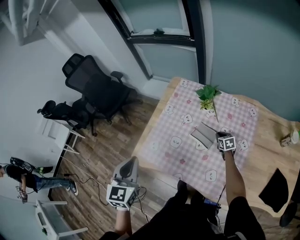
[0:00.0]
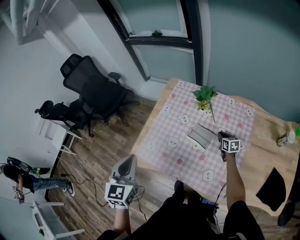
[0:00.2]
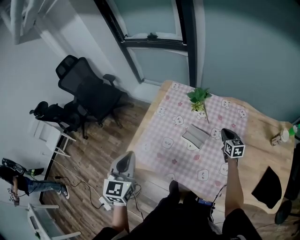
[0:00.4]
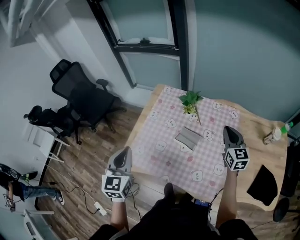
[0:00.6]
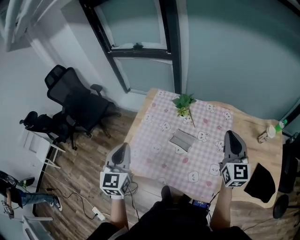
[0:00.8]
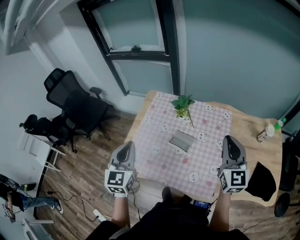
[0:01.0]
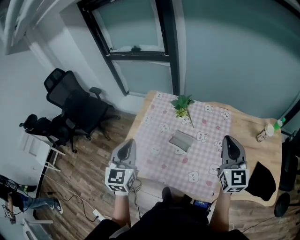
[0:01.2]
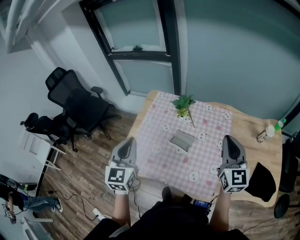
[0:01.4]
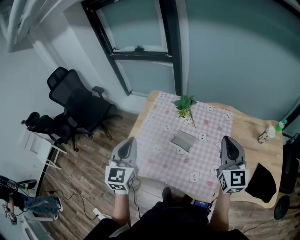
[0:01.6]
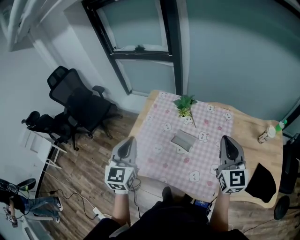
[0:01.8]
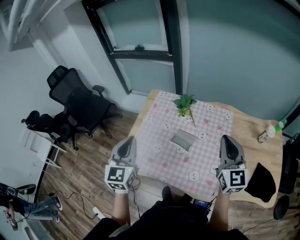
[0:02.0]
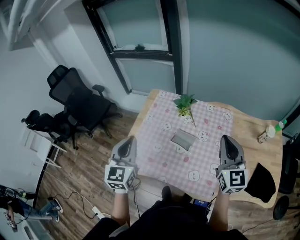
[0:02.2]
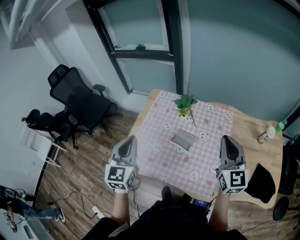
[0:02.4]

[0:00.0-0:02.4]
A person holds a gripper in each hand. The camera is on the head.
0:00.0 to 0:01.2: The left gripper travels forward, to the right and upward by approximately 10 cm, while the right gripper goes about 50 cm upward and backward, and points its fingers some 40 degrees further upward.
0:01.2 to 0:02.4: The grippers move only a little.

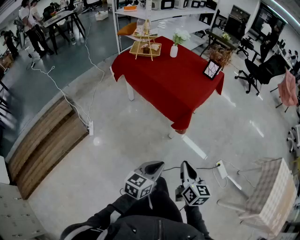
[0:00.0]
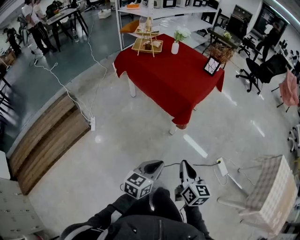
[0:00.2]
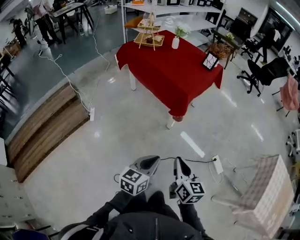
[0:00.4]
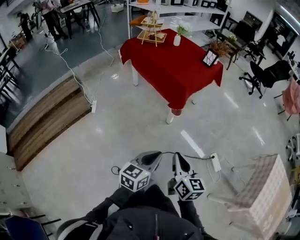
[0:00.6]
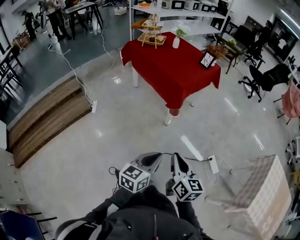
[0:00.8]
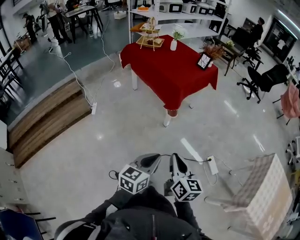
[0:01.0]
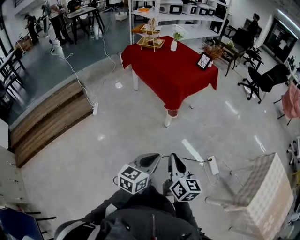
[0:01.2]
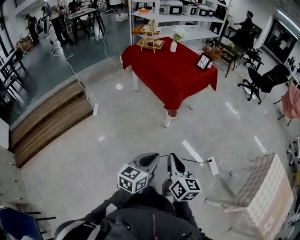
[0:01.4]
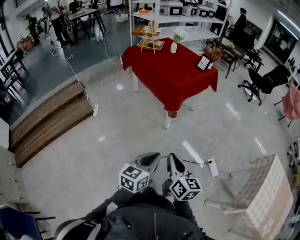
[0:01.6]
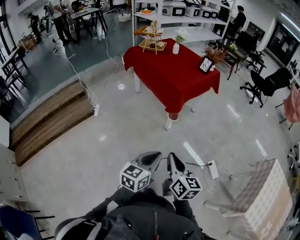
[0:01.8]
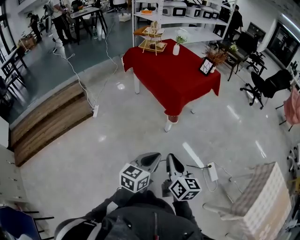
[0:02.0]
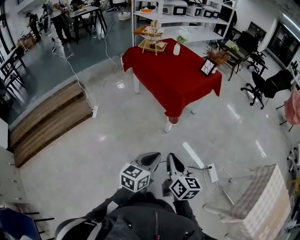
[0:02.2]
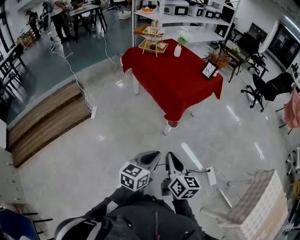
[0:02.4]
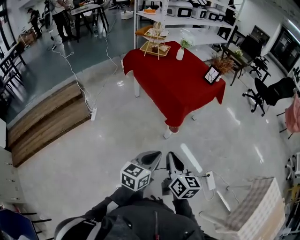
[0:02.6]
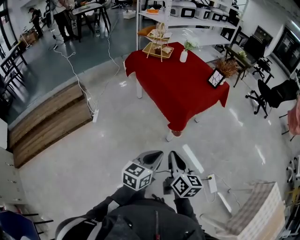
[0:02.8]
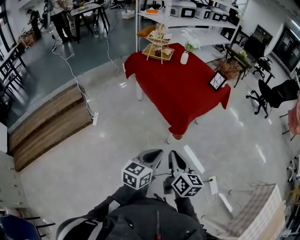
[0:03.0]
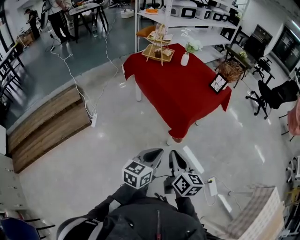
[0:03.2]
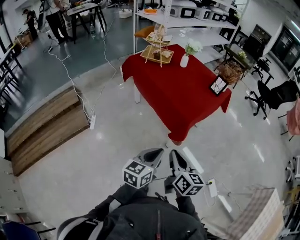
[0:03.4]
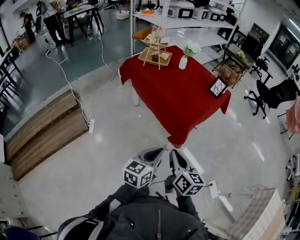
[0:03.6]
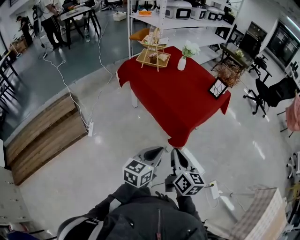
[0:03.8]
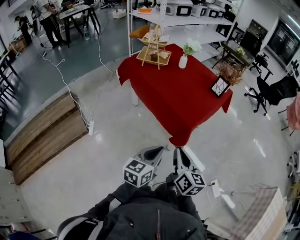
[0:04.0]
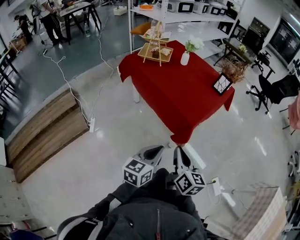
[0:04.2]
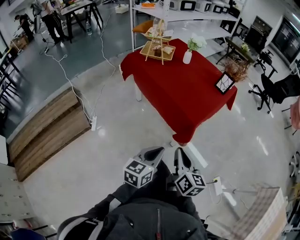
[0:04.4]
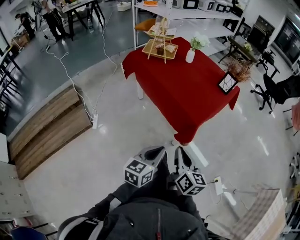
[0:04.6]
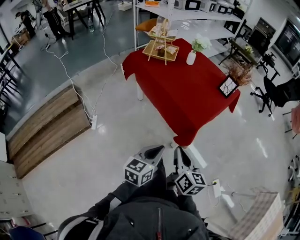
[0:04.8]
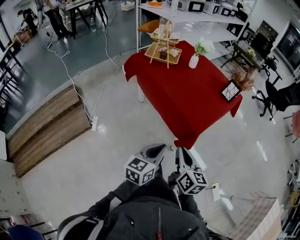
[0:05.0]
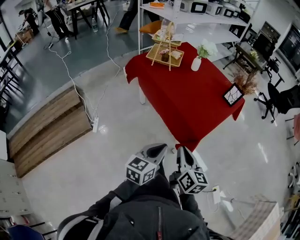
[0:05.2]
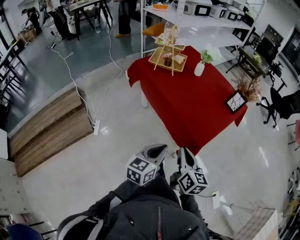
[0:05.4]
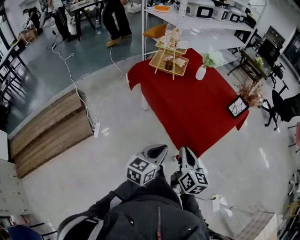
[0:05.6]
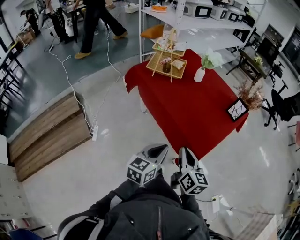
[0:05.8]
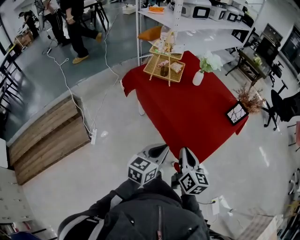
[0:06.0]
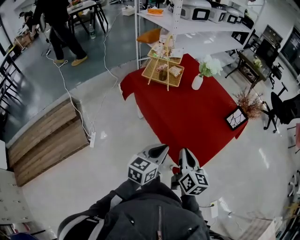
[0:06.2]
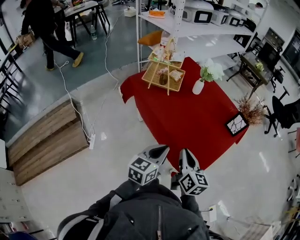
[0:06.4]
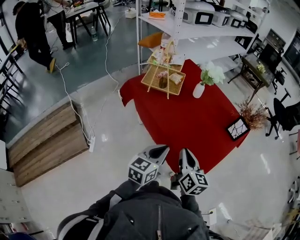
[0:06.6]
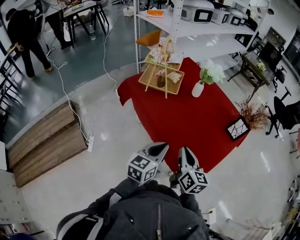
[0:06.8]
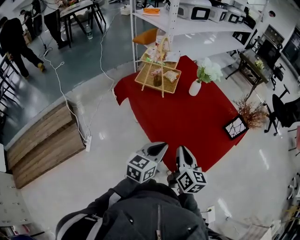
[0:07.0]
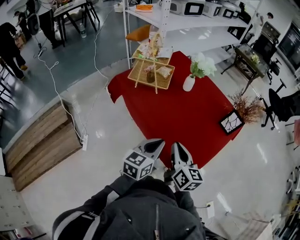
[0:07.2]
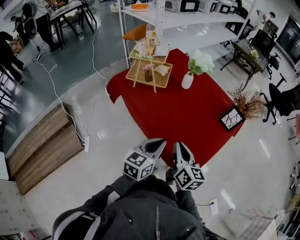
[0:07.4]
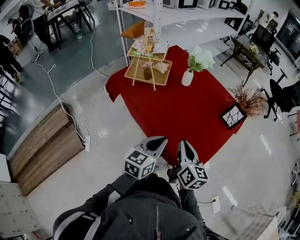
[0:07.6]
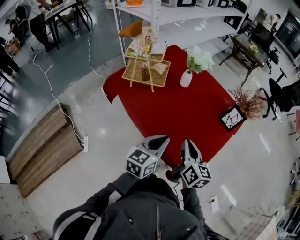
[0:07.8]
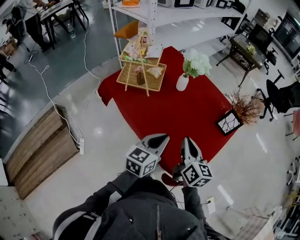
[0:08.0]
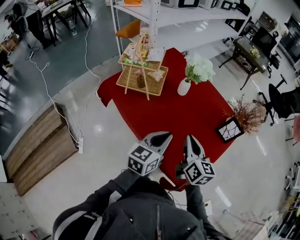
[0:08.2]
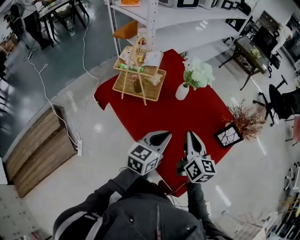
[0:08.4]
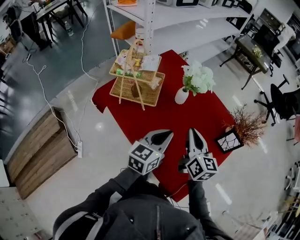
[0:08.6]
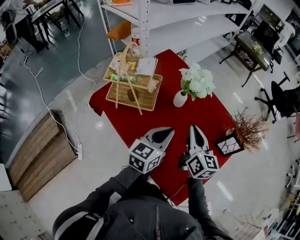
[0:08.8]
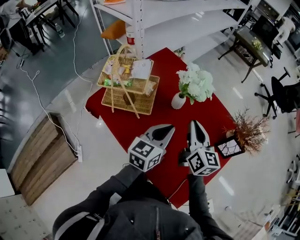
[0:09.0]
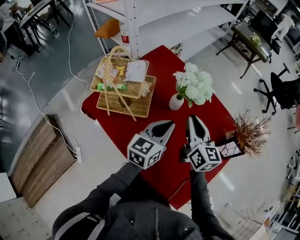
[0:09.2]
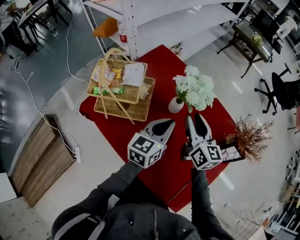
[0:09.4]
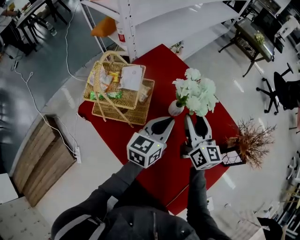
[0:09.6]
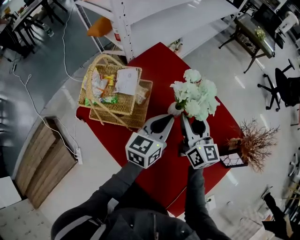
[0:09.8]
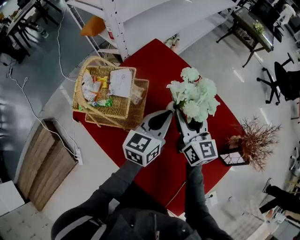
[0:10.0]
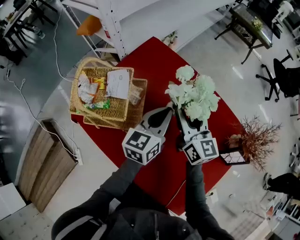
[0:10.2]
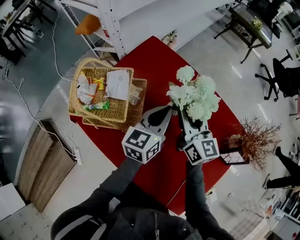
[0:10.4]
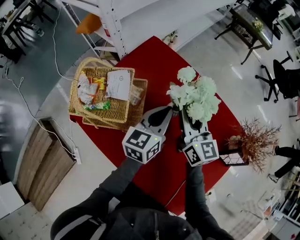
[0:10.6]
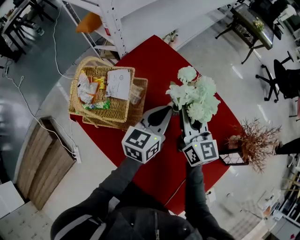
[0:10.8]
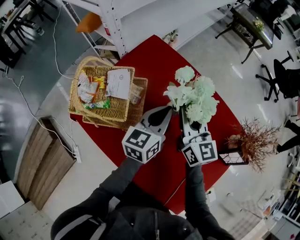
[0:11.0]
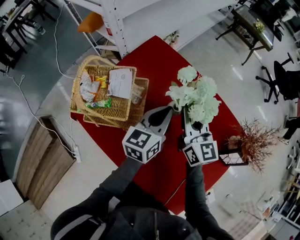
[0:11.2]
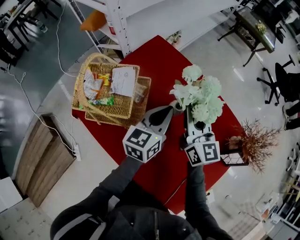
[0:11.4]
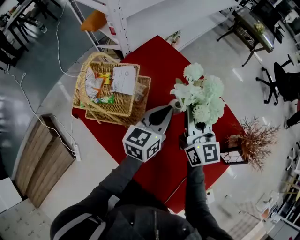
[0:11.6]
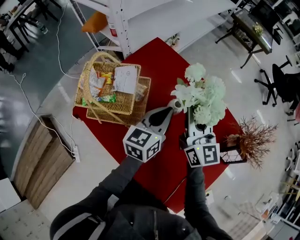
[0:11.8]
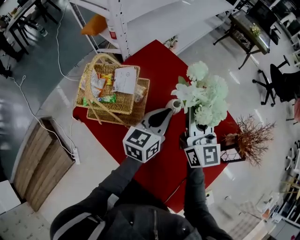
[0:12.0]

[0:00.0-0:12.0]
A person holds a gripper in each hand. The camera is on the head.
0:00.0 to 0:01.6: The two grippers go some 25 cm backward and to the right.
0:01.6 to 0:03.0: The grippers both shift forward by roughly 25 cm.
0:03.0 to 0:04.4: The left gripper shifts roughly 15 cm forward and to the left. Meanwhile the right gripper shifts roughly 10 cm forward.
0:04.4 to 0:06.0: Both grippers travel together forward, approximately 25 cm.
0:06.0 to 0:07.6: The grippers both shift forward by roughly 15 cm.
0:07.6 to 0:09.0: The two grippers go about 30 cm forward.
0:09.0 to 0:10.4: The grippers both shift forward by approximately 15 cm. The right gripper opens its fingers.
0:10.4 to 0:12.0: The right gripper travels upward by roughly 10 cm, and closes its fingers.

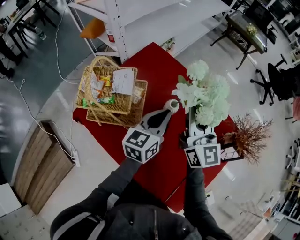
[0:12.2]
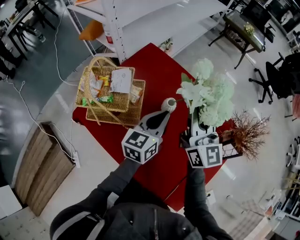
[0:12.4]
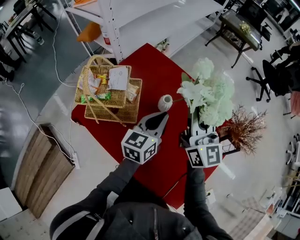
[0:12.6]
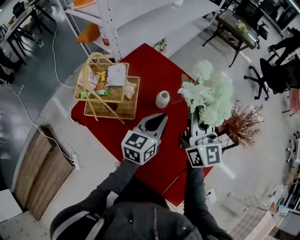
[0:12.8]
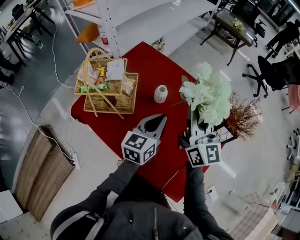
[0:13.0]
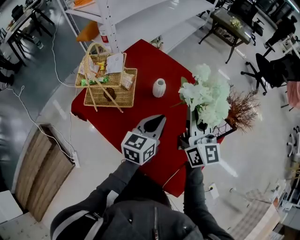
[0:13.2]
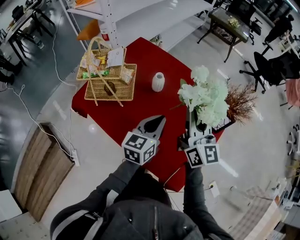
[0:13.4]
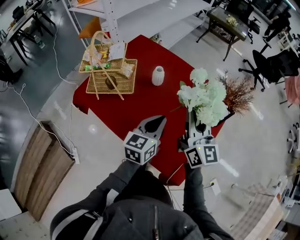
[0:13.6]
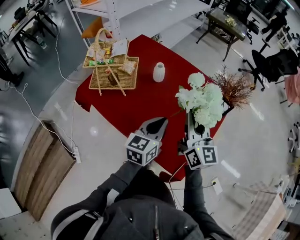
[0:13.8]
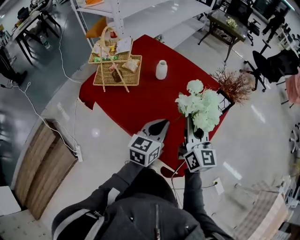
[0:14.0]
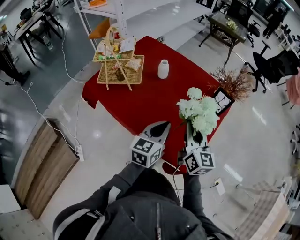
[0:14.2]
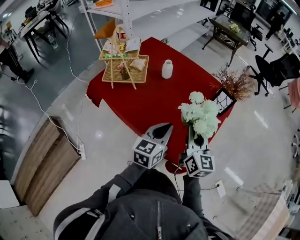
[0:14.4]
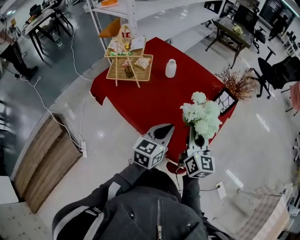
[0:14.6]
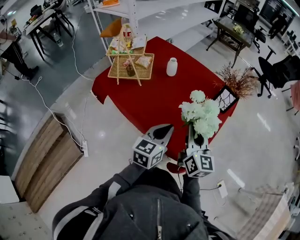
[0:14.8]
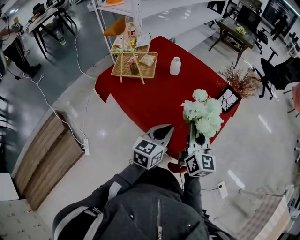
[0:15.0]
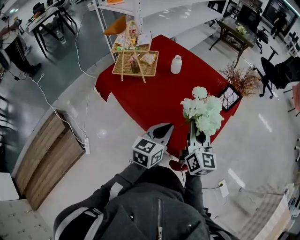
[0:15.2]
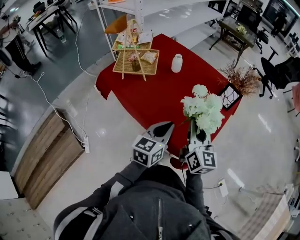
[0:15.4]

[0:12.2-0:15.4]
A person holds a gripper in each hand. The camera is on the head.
0:12.2 to 0:13.8: The grippers both shift backward and to the right by about 25 cm.
0:13.8 to 0:15.4: Both grippers move backward, roughly 15 cm.

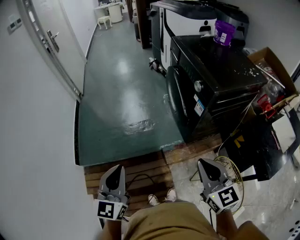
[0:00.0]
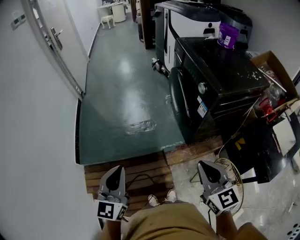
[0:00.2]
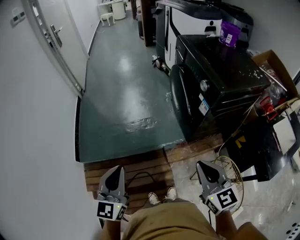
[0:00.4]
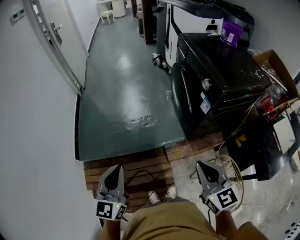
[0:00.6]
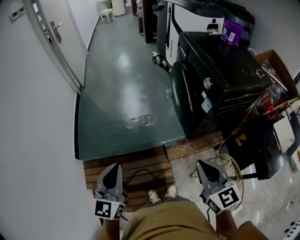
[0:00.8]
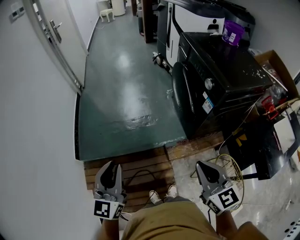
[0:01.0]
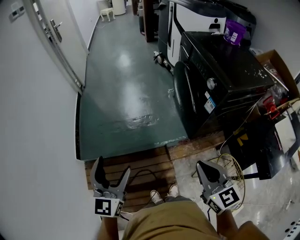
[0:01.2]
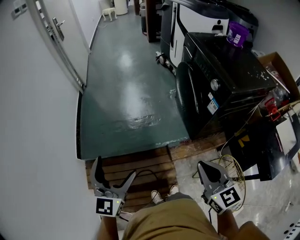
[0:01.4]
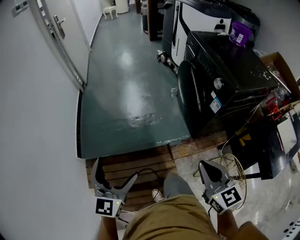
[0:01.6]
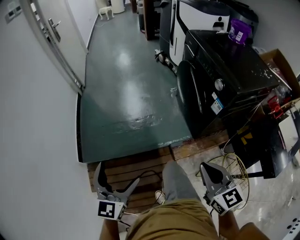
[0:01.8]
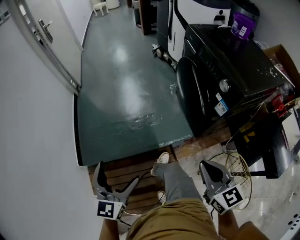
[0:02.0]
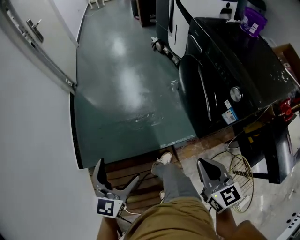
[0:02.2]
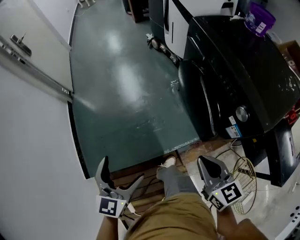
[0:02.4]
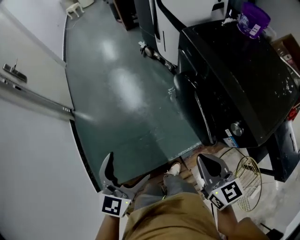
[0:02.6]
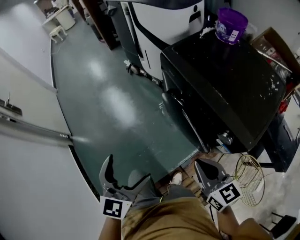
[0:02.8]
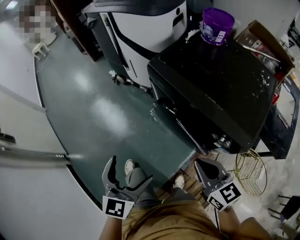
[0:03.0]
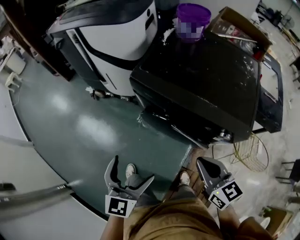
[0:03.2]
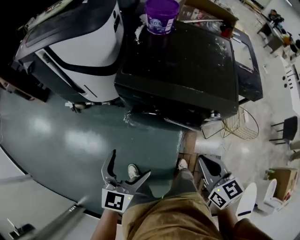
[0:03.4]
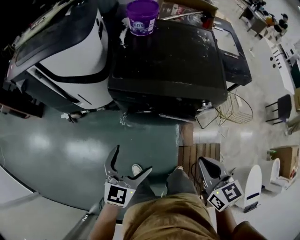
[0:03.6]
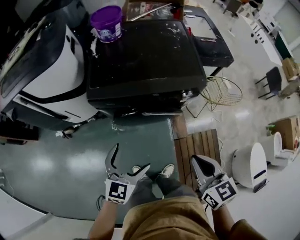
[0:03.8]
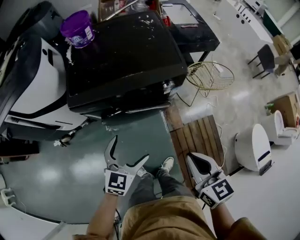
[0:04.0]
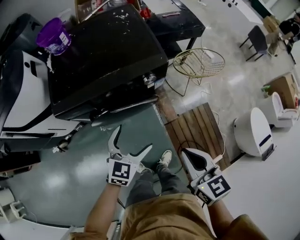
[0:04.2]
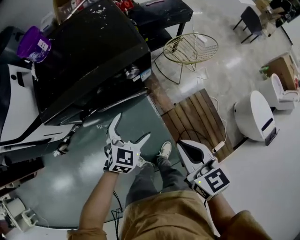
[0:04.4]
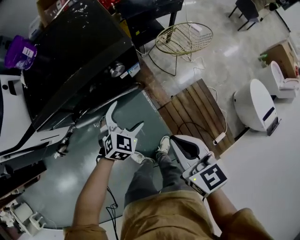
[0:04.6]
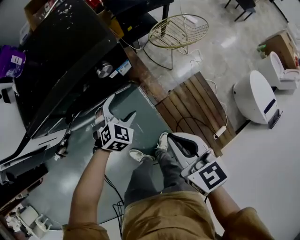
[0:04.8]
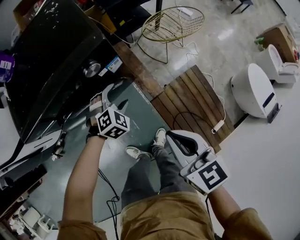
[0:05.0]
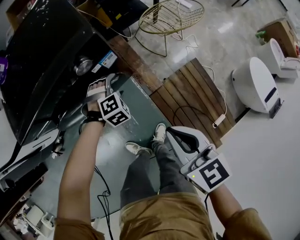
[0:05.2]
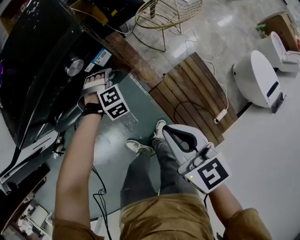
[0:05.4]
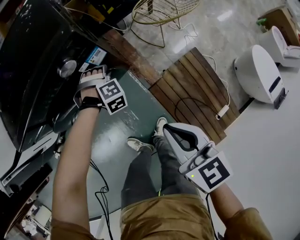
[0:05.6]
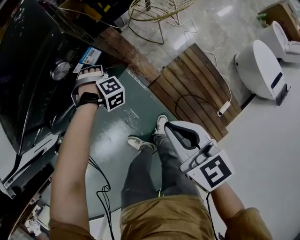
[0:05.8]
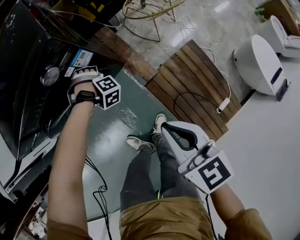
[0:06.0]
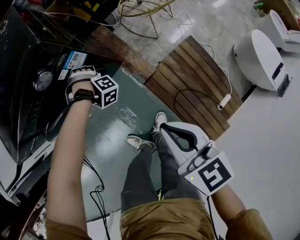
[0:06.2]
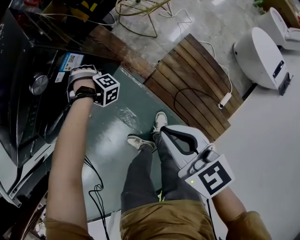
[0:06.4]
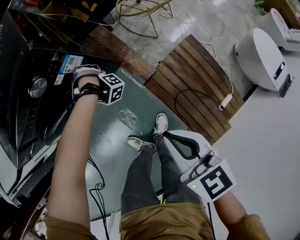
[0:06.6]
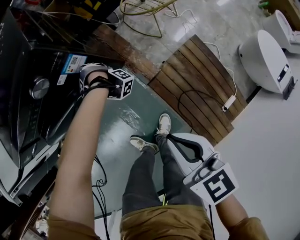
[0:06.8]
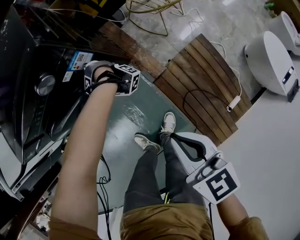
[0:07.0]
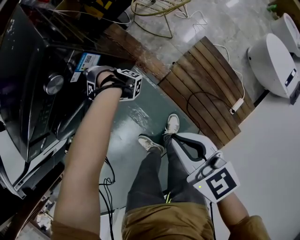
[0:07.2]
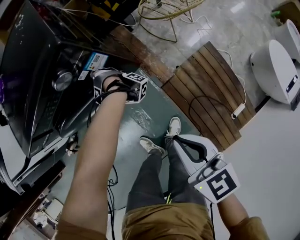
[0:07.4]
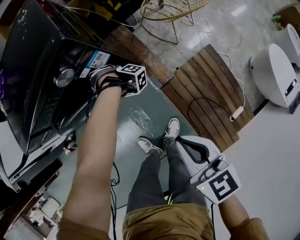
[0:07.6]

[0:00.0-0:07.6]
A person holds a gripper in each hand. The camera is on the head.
0:00.0 to 0:01.6: The grippers both shift to the left by approximately 10 cm. The left gripper opens.
0:01.6 to 0:03.0: Both grippers are carried about 50 cm. The left gripper rotates some 40 degrees. Meanwhile the right gripper rotates some 30 degrees.
0:03.0 to 0:04.6: The right gripper moves approximately 5 cm upward and comes back, and swivels roughly 70 degrees; the left gripper changes place by approximately 30 cm, and rotates some 90 degrees.
0:04.6 to 0:06.0: The left gripper is displaced downward by roughly 20 cm, turns by approximately 80 degrees, and closes up; the right gripper is displaced downward by roughly 10 cm.
0:06.0 to 0:07.6: The left gripper rotates about 30 degrees.
